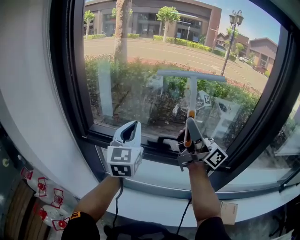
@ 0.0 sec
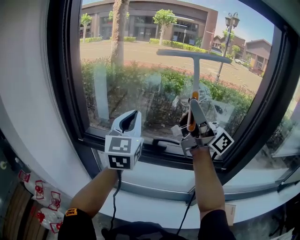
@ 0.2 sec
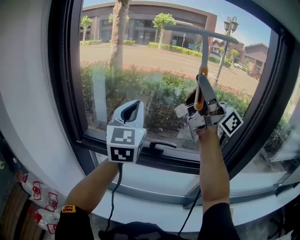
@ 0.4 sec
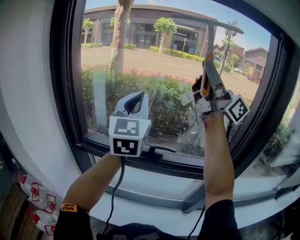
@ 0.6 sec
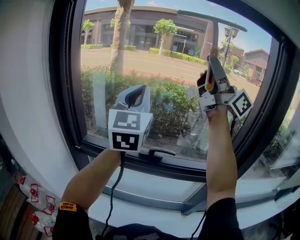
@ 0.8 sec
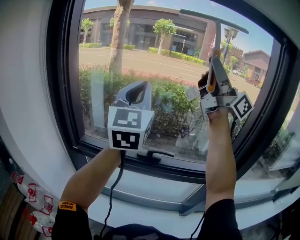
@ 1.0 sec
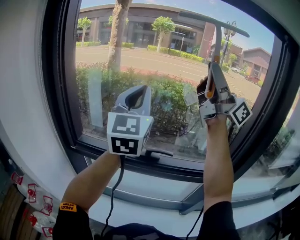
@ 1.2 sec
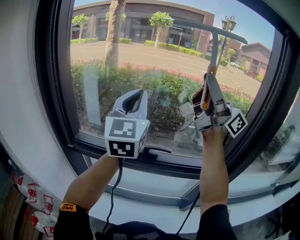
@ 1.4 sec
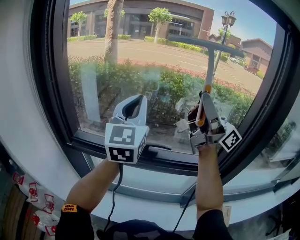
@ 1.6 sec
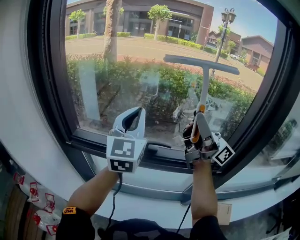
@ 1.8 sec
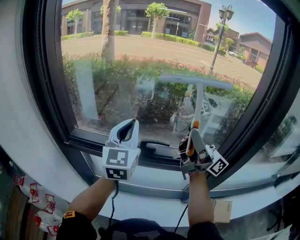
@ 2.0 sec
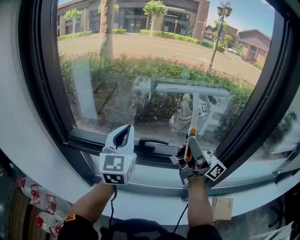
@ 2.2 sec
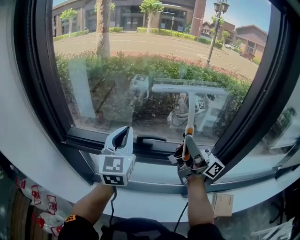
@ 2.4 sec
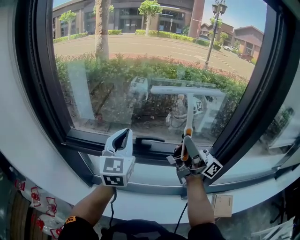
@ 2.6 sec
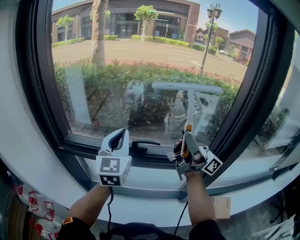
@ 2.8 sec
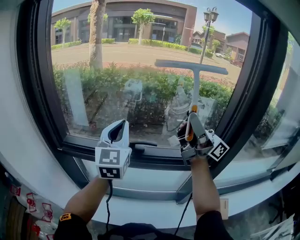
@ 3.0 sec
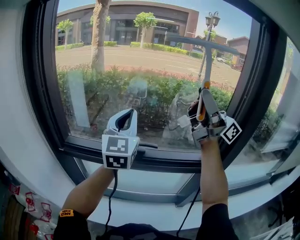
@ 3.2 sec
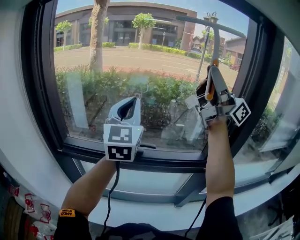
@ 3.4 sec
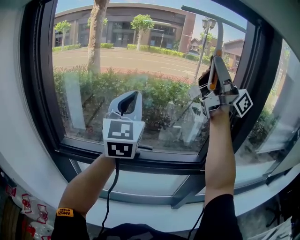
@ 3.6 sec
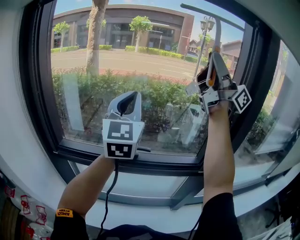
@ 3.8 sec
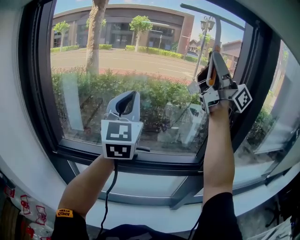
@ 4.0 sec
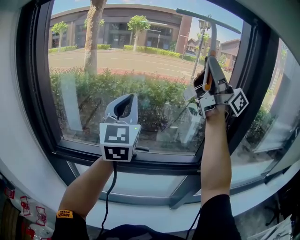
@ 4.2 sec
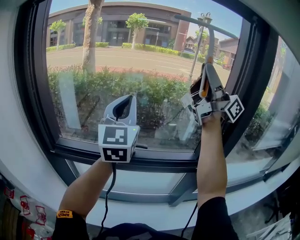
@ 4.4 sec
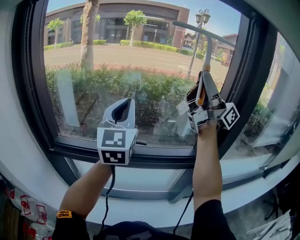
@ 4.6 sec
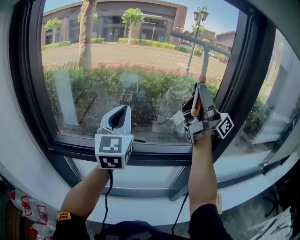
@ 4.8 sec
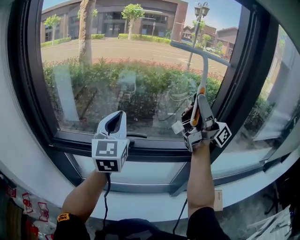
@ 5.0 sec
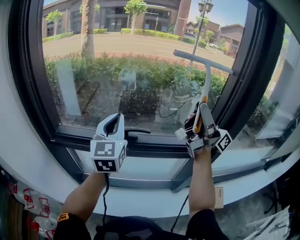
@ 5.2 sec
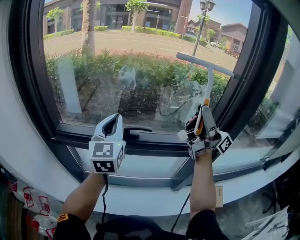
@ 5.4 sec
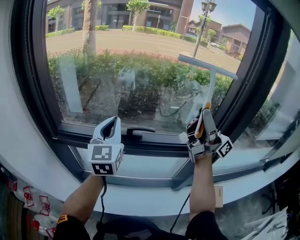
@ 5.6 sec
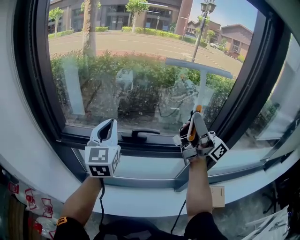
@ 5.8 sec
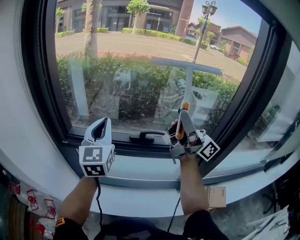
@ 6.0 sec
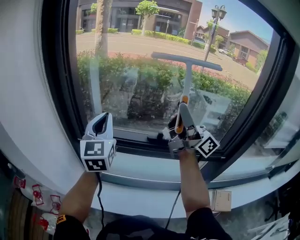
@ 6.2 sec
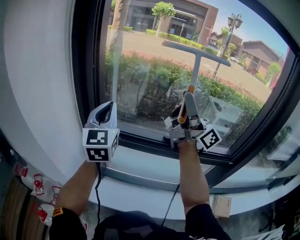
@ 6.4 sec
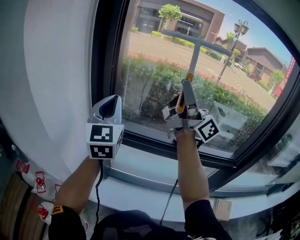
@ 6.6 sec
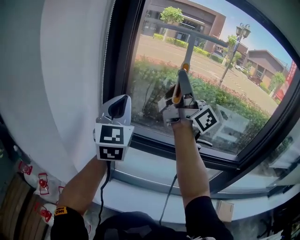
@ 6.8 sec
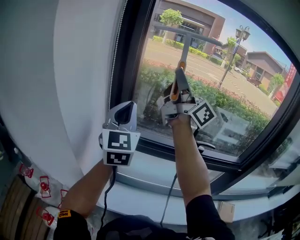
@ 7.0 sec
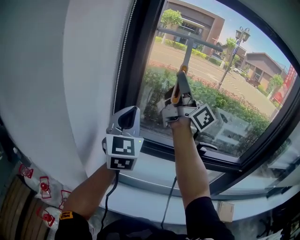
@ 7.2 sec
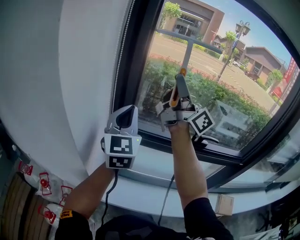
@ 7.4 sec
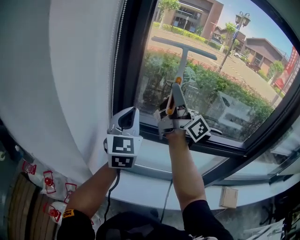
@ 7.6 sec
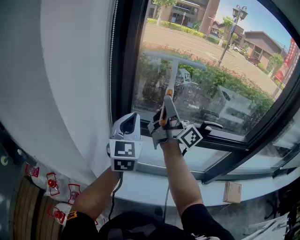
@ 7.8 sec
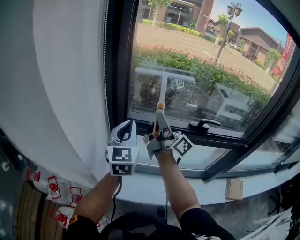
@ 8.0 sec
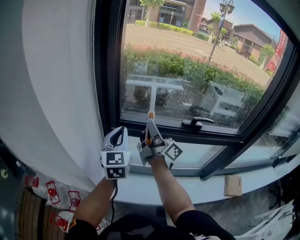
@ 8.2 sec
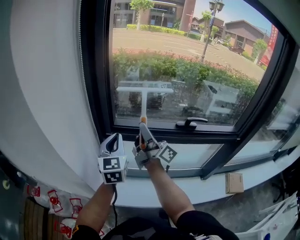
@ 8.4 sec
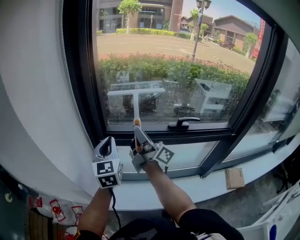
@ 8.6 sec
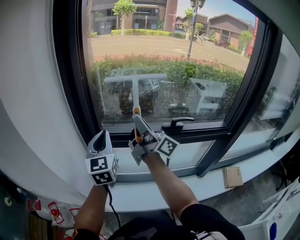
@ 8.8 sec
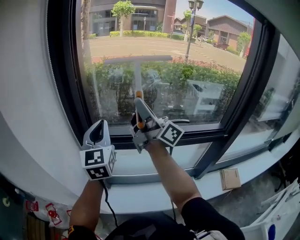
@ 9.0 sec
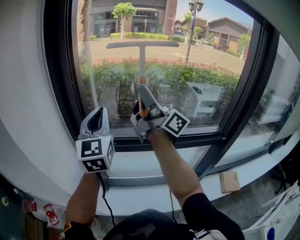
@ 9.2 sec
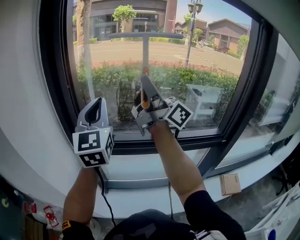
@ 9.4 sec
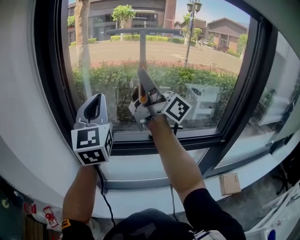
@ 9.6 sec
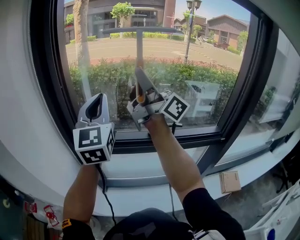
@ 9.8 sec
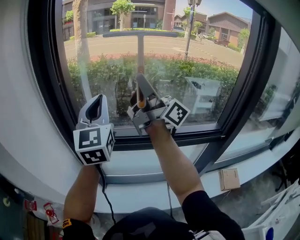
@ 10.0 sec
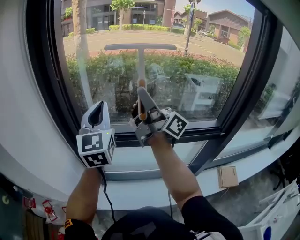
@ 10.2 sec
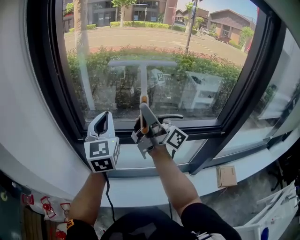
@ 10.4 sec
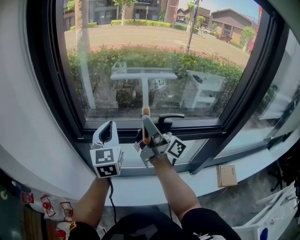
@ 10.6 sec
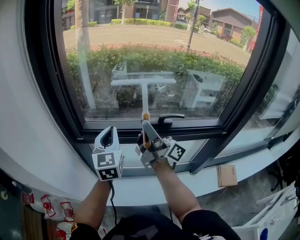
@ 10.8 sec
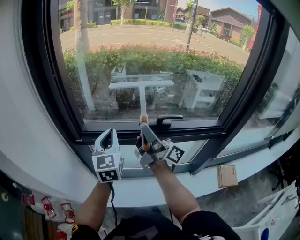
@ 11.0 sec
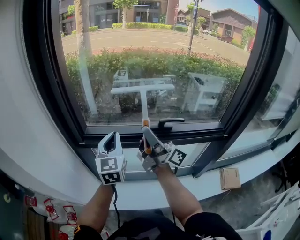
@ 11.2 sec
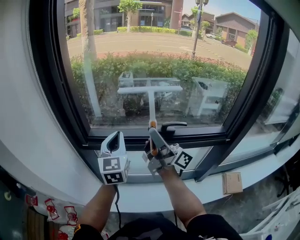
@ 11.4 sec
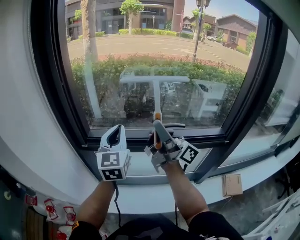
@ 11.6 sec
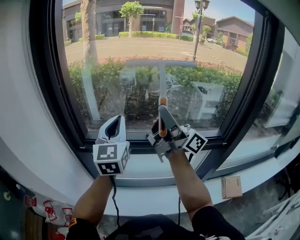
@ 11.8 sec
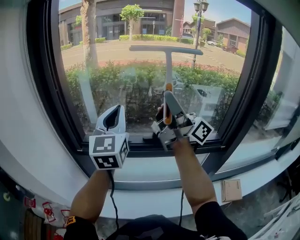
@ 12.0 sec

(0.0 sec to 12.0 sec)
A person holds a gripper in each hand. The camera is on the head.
0.0 sec - 1.6 sec: The grippers both shift upward and to the right by about 15 cm.
1.6 sec - 3.0 sec: The two grippers go some 10 cm downward.
3.0 sec - 4.4 sec: The right gripper moves upward, roughly 20 cm; the left gripper goes about 10 cm upward.
4.4 sec - 6.0 sec: The left gripper shifts roughly 20 cm to the left and downward; the right gripper moves downward and to the left, some 25 cm.
6.0 sec - 7.6 sec: The left gripper heads to the left, covering roughly 20 cm. Meanwhile the right gripper heads to the left and forward, covering roughly 35 cm.
7.6 sec - 9.0 sec: The two grippers go about 5 cm to the right. The right gripper reaches roughly 15 cm downward, then returns, while the left gripper moves roughly 10 cm downward and comes back.
9.0 sec - 10.4 sec: The two grippers go some 5 cm to the right. The right gripper travels upward and back again, approximately 10 cm each way. The left gripper travels upward and back again, roughly 10 cm each way.
10.4 sec - 12.0 sec: The two grippers go some 15 cm upward and to the right.

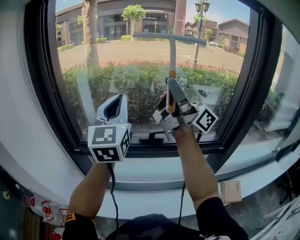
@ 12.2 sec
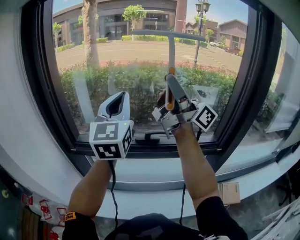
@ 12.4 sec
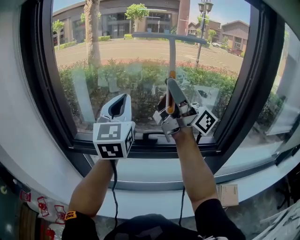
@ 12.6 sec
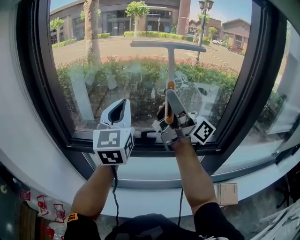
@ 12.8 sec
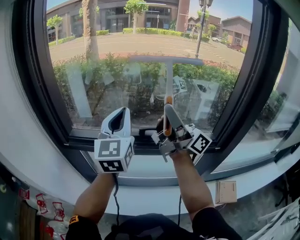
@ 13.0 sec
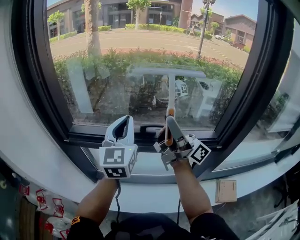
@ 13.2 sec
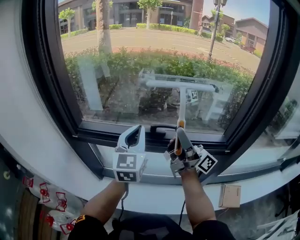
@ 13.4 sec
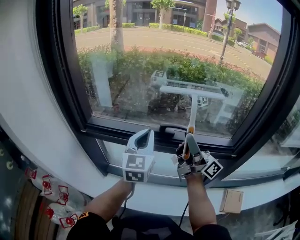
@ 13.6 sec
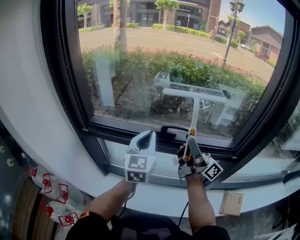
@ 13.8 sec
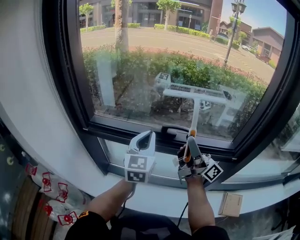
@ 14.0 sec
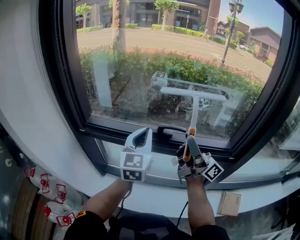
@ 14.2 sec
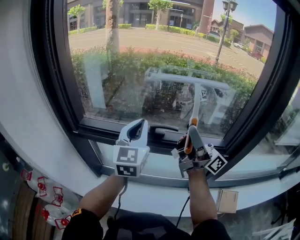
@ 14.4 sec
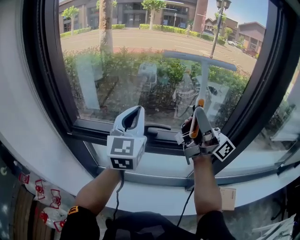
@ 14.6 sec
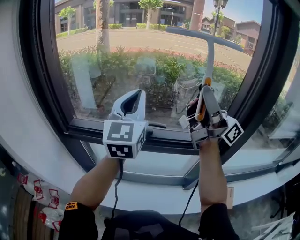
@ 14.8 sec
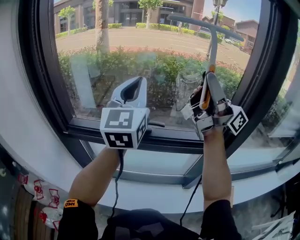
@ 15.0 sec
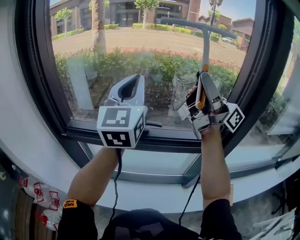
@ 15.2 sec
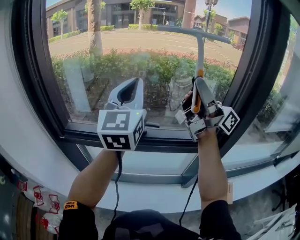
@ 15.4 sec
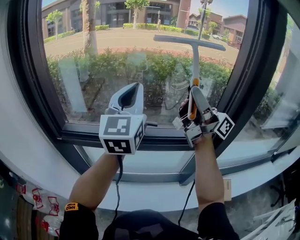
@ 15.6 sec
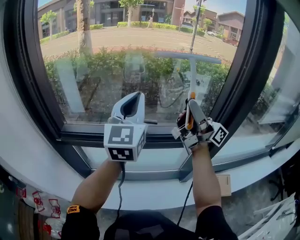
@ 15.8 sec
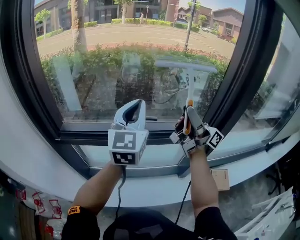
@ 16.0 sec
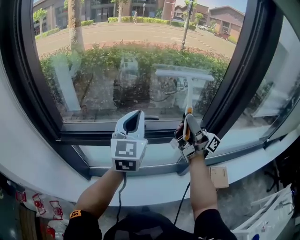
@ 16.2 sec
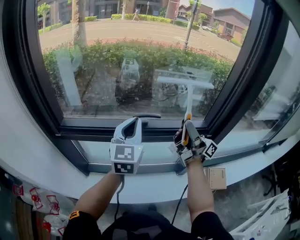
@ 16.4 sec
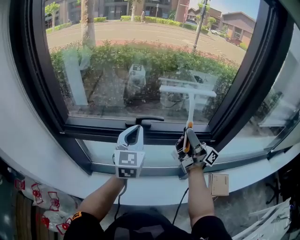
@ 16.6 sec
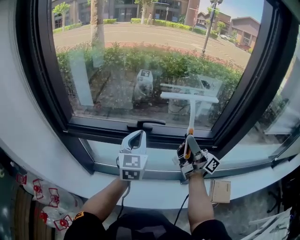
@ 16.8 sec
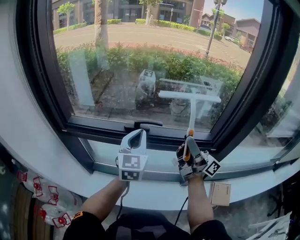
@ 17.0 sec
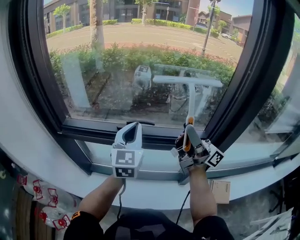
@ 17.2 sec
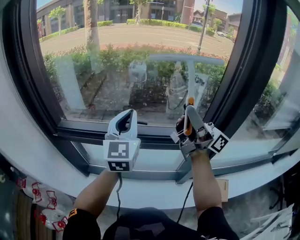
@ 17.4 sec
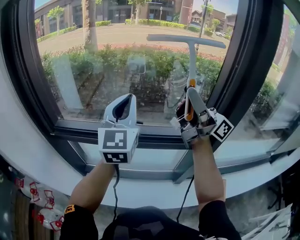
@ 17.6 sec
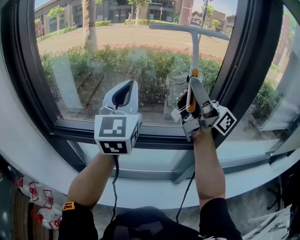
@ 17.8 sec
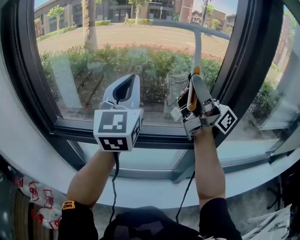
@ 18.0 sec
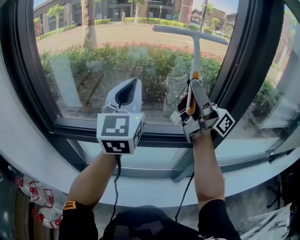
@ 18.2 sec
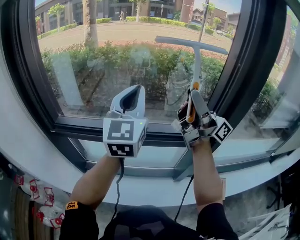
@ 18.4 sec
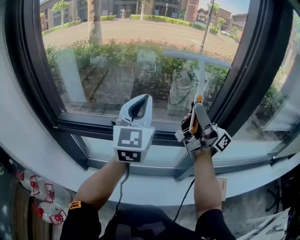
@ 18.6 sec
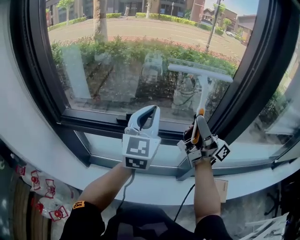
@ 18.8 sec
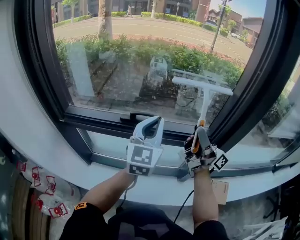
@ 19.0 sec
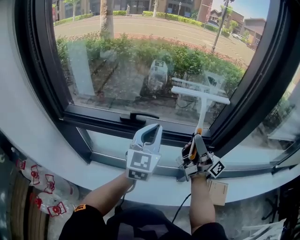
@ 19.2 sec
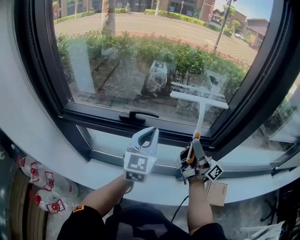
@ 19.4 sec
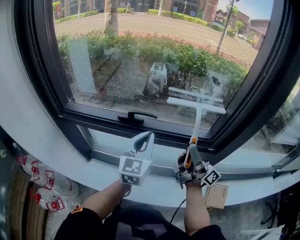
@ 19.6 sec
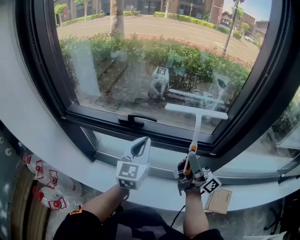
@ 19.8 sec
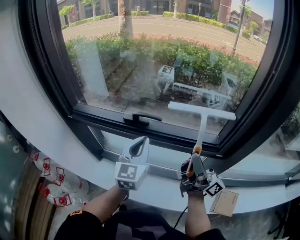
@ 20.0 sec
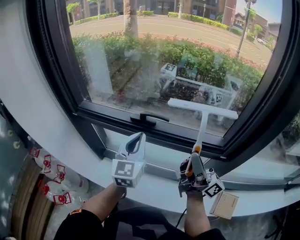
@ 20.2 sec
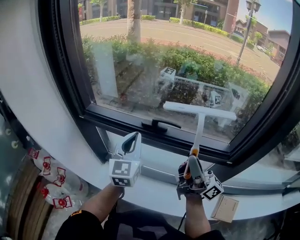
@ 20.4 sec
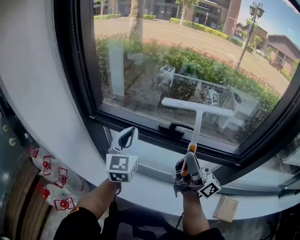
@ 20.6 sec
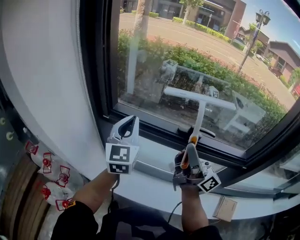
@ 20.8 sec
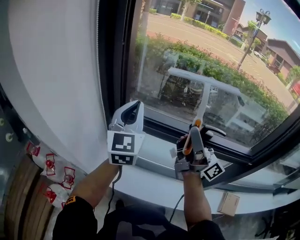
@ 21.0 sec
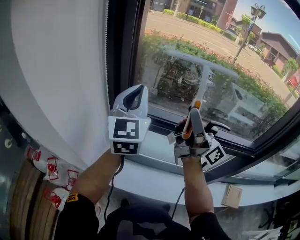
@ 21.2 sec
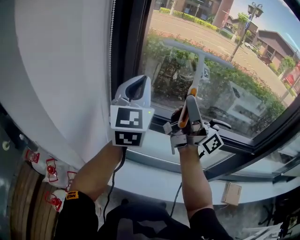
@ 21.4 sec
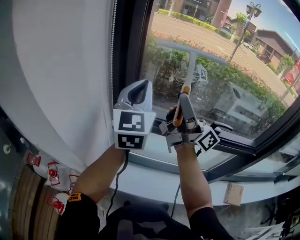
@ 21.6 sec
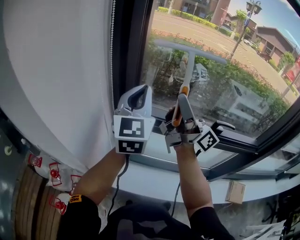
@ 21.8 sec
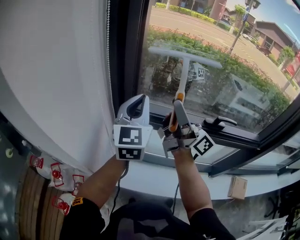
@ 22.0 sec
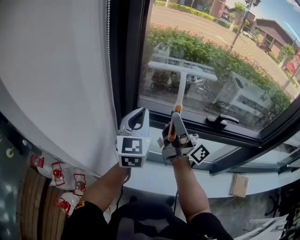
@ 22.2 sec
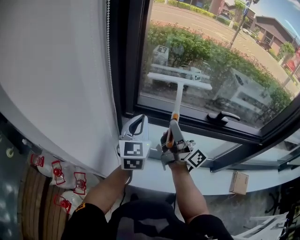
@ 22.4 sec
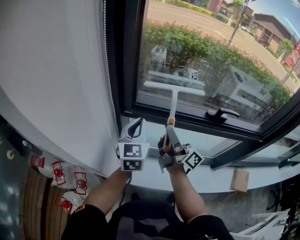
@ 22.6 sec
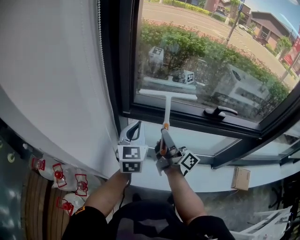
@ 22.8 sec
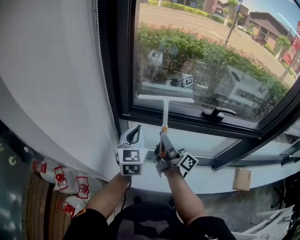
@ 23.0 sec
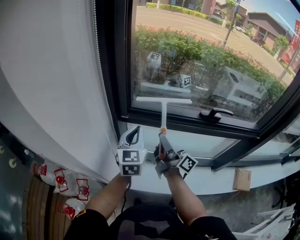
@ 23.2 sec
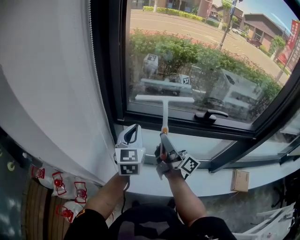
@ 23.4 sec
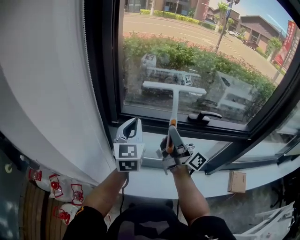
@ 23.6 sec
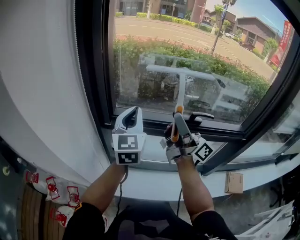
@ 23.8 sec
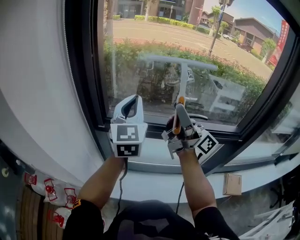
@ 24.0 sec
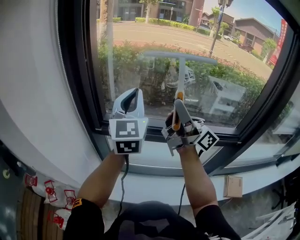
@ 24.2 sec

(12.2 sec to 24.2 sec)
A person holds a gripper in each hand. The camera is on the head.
12.2 sec - 13.8 sec: Both grippers move downward, approximately 20 cm.
13.8 sec - 15.2 sec: Both grippers travel together upward, approximately 20 cm.
15.2 sec - 16.6 sec: Both grippers travel together downward, about 25 cm.
16.6 sec - 18.2 sec: Both grippers travel together upward, about 20 cm.
18.2 sec - 19.8 sec: The grippers both shift downward by some 25 cm. The left gripper changes its angle by about 20 degrees.
19.8 sec - 21.2 sec: The two grippers travel together, to the left and forward, approximately 40 cm. Both grippers travel together upward, about 15 cm. The left gripper swivels some 20 degrees.
21.2 sec - 22.6 sec: Both grippers move downward, roughly 20 cm. The right gripper swivels some 20 degrees, while the left gripper swivels approximately 20 degrees.
22.6 sec - 24.2 sec: The grippers both shift upward and to the right by roughly 25 cm. The right gripper swivels roughly 20 degrees. The left gripper swivels approximately 20 degrees.
